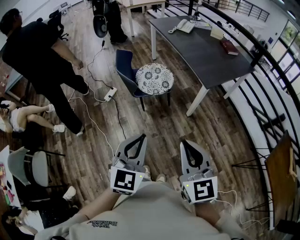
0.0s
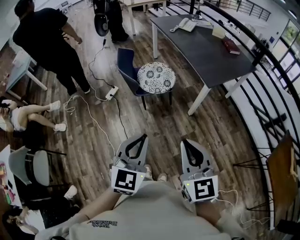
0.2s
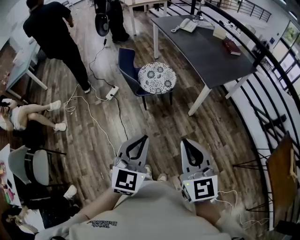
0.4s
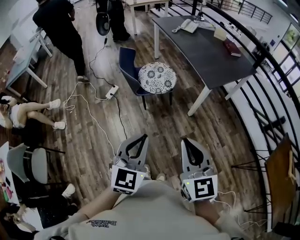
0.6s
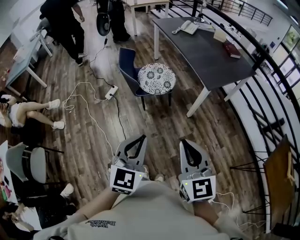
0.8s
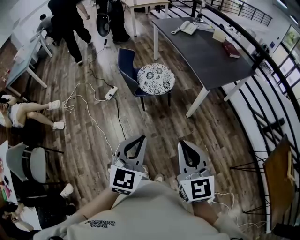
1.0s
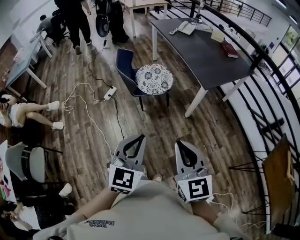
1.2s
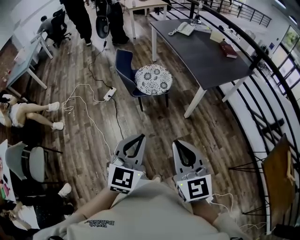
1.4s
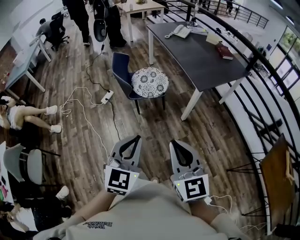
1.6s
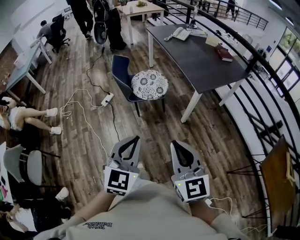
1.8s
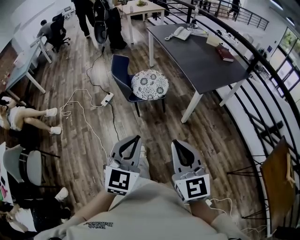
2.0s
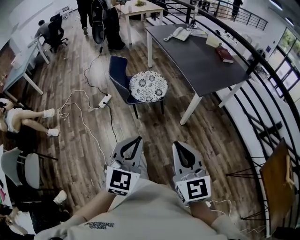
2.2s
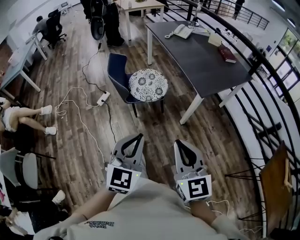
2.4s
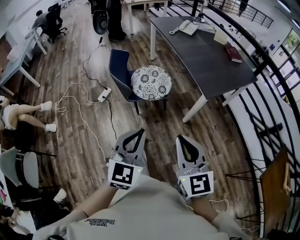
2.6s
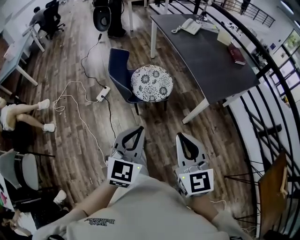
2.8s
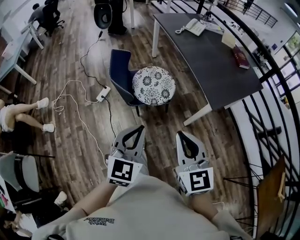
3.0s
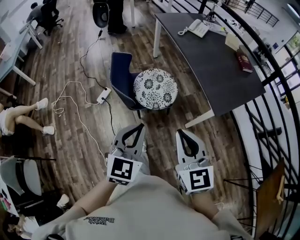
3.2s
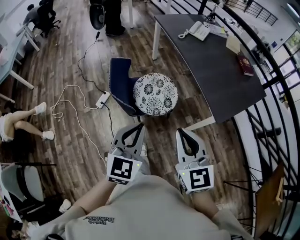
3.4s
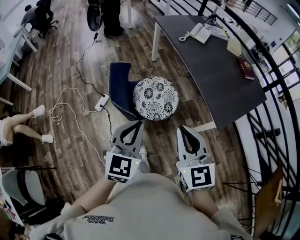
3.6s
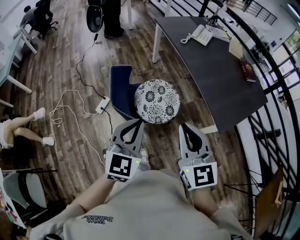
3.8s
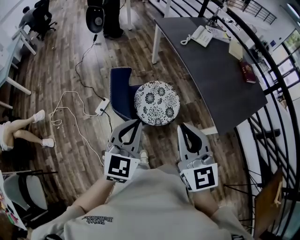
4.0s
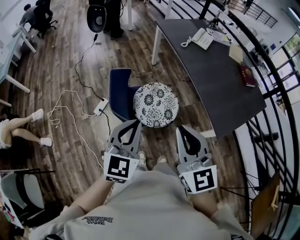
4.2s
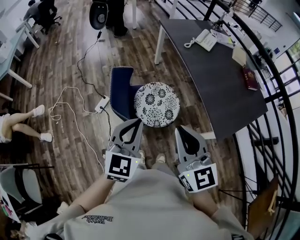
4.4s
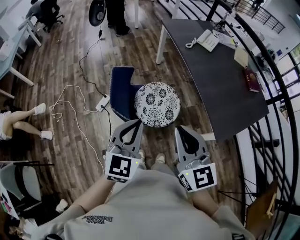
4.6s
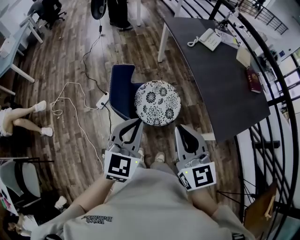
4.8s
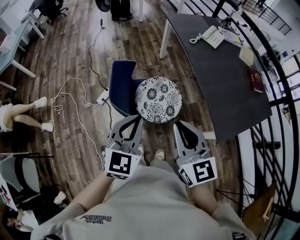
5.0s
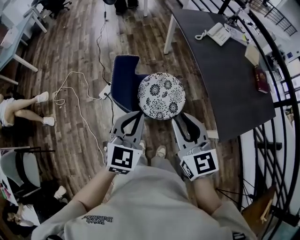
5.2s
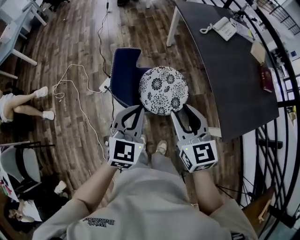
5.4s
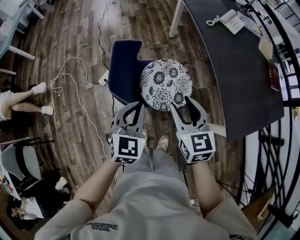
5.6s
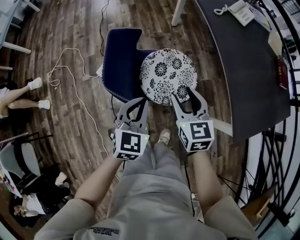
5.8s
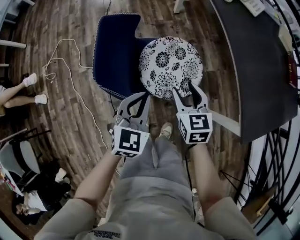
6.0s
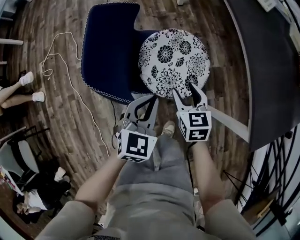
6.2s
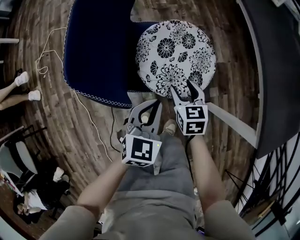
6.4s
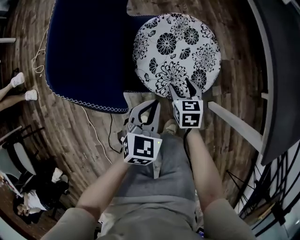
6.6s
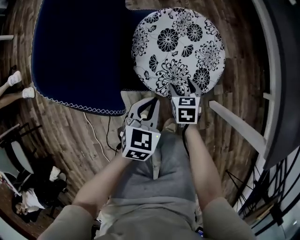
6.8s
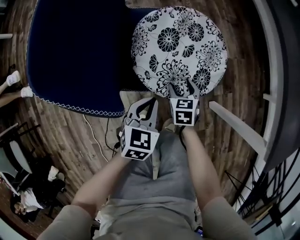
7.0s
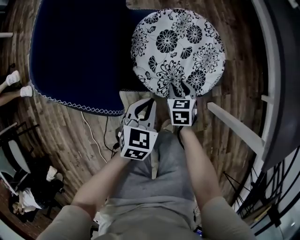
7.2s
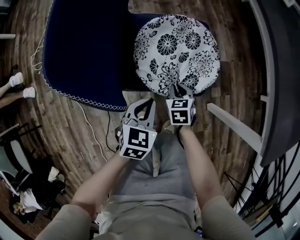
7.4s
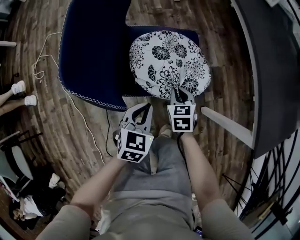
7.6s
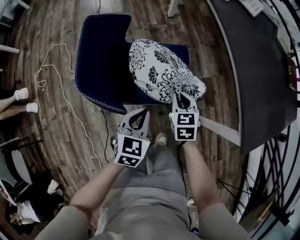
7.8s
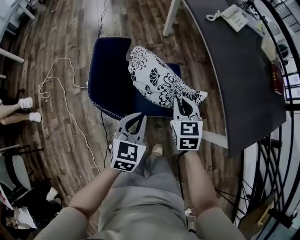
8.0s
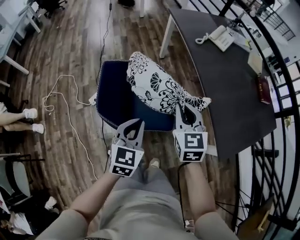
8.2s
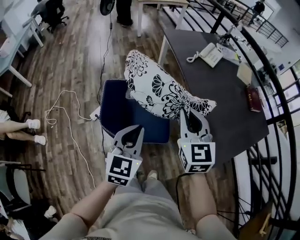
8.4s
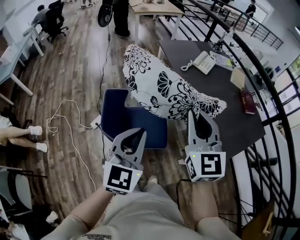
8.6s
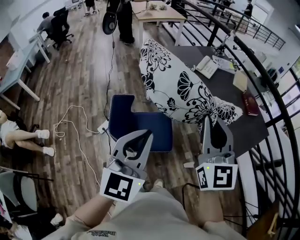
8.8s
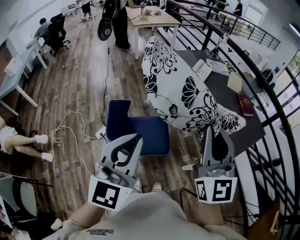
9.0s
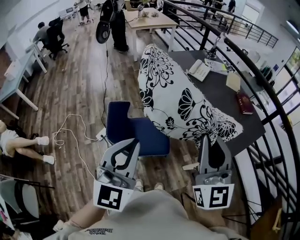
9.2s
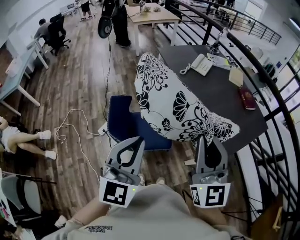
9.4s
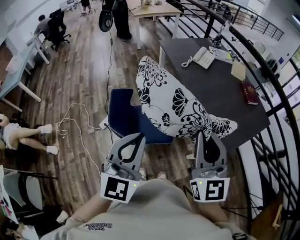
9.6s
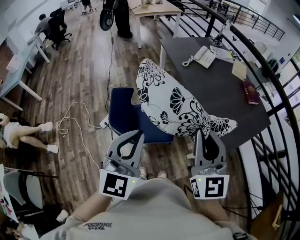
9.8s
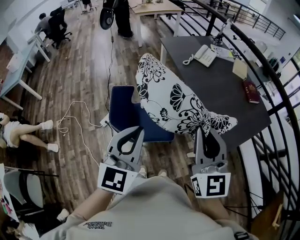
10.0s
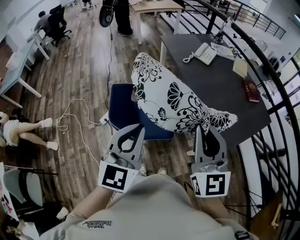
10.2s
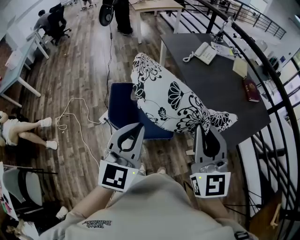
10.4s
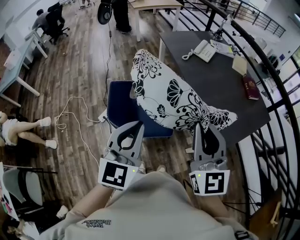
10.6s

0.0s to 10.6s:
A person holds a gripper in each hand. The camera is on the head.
0.0s to 1.6s: The grippers stay close to where they were, moving slightly.
1.6s to 3.0s: The grippers both shift forward by roughly 25 cm.
3.0s to 4.6s: The grippers both shift forward by some 25 cm.
4.6s to 6.0s: The left gripper heads downward, covering about 30 cm. Meanwhile the right gripper is displaced downward and forward by about 40 cm, changes its angle by roughly 30 degrees, and opens its fingers.
6.0s to 7.6s: Both grippers travel together downward, some 25 cm. The right gripper closes up.
7.6s to 9.0s: The two grippers go some 70 cm upward. The right gripper tilts its fingers roughly 60 degrees upward; the left gripper points its fingers roughly 40 degrees further upward.
9.0s to 10.6s: The two grippers go approximately 5 cm downward.

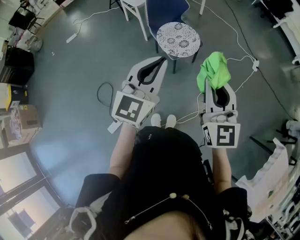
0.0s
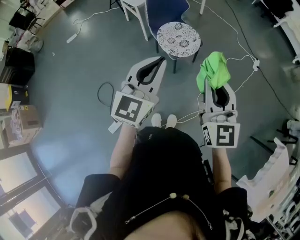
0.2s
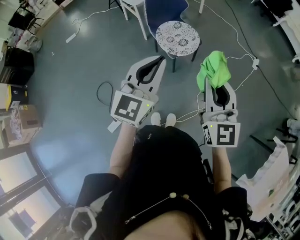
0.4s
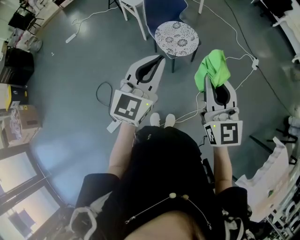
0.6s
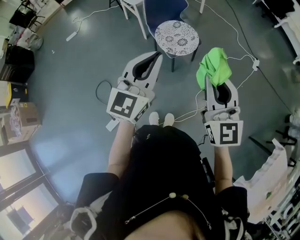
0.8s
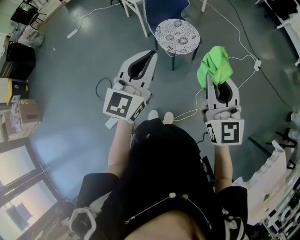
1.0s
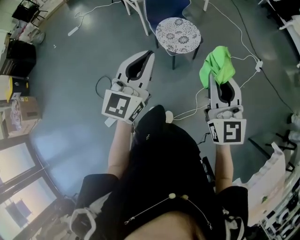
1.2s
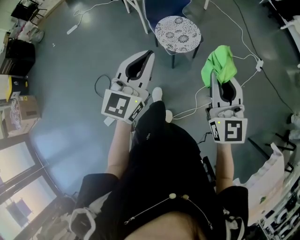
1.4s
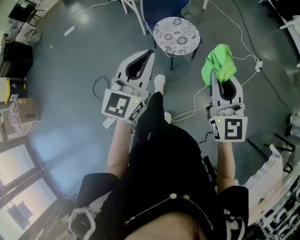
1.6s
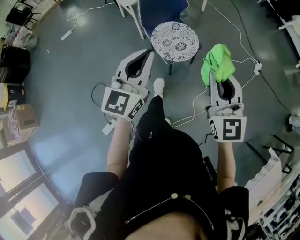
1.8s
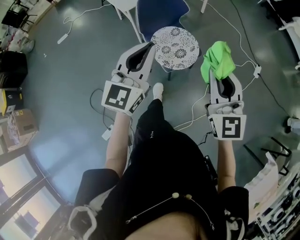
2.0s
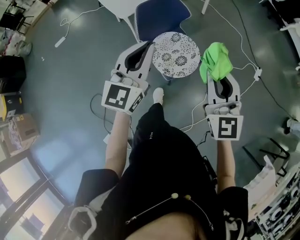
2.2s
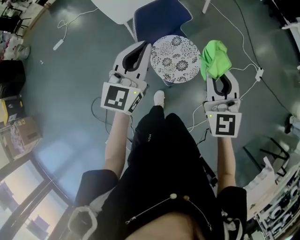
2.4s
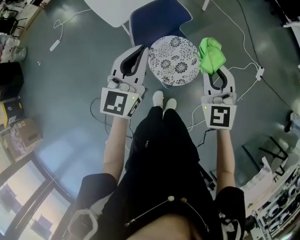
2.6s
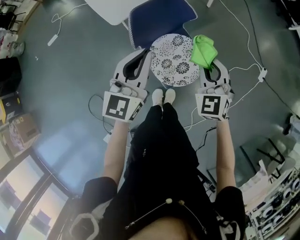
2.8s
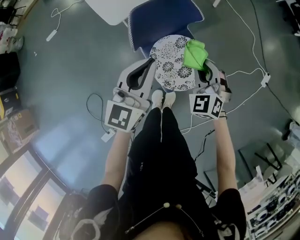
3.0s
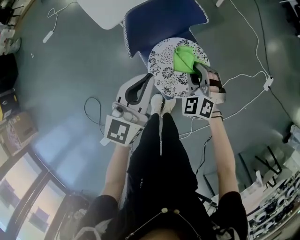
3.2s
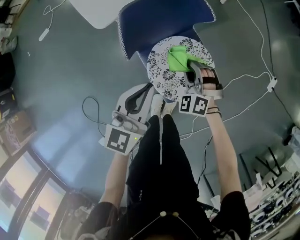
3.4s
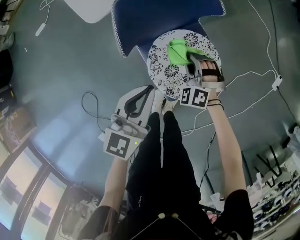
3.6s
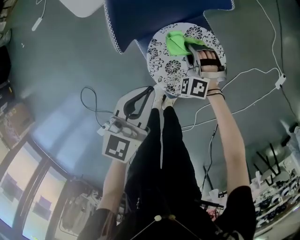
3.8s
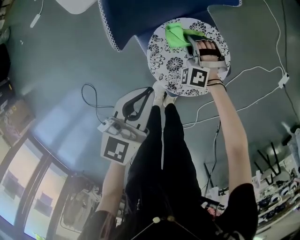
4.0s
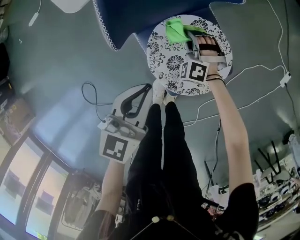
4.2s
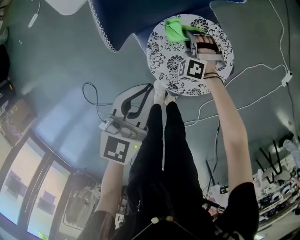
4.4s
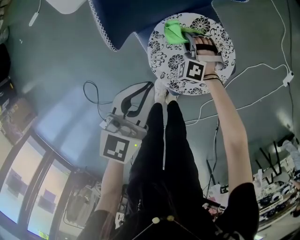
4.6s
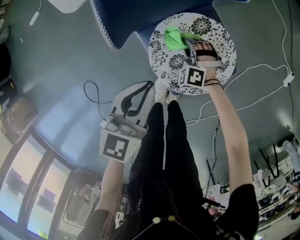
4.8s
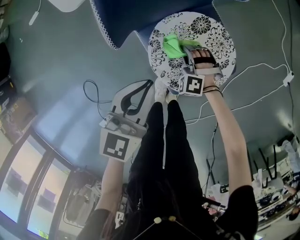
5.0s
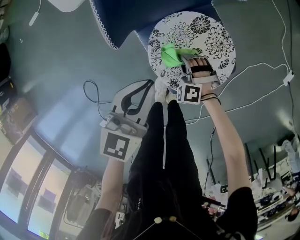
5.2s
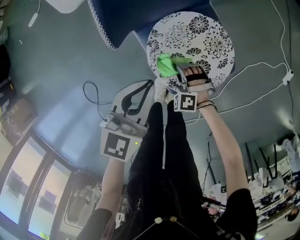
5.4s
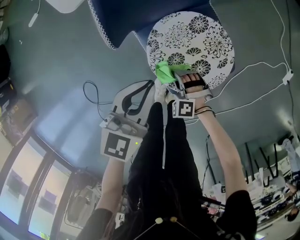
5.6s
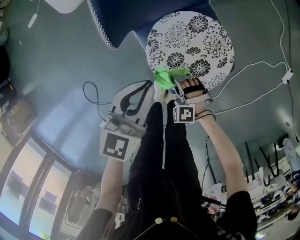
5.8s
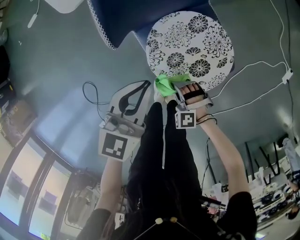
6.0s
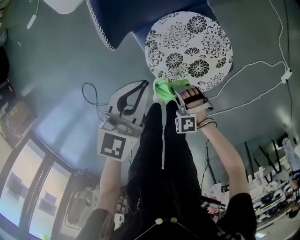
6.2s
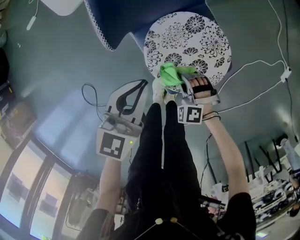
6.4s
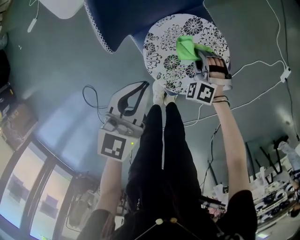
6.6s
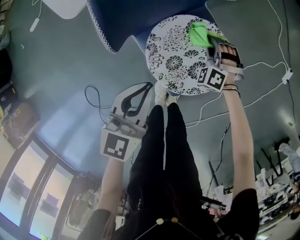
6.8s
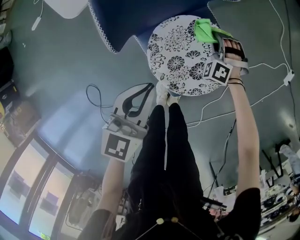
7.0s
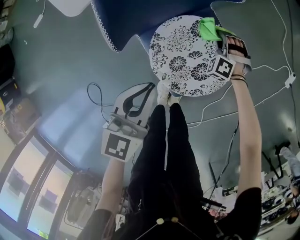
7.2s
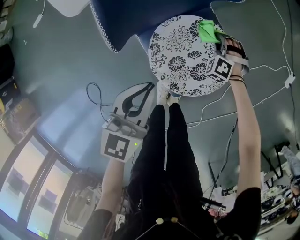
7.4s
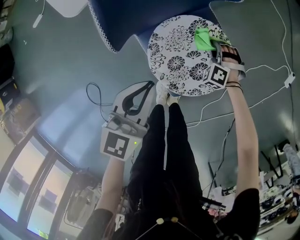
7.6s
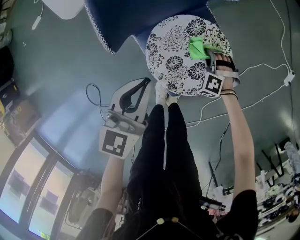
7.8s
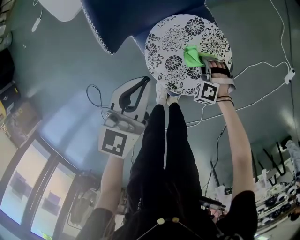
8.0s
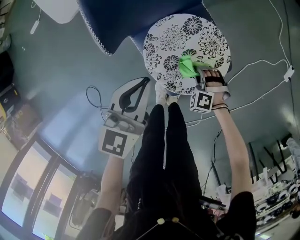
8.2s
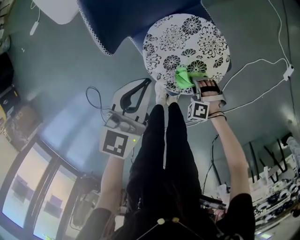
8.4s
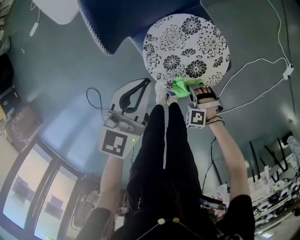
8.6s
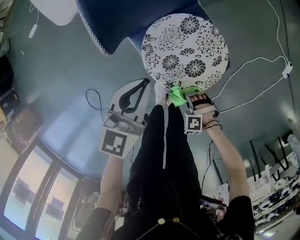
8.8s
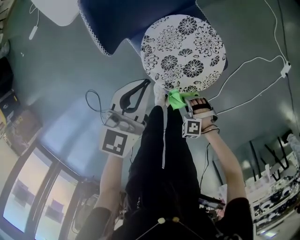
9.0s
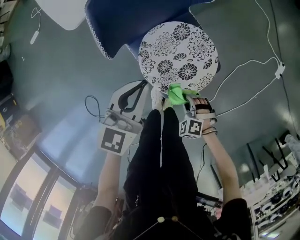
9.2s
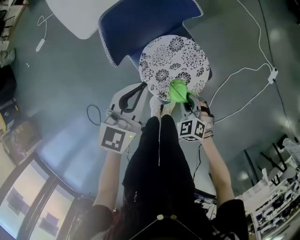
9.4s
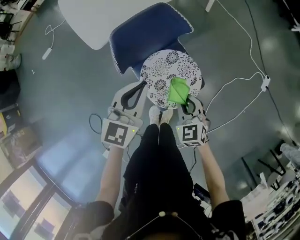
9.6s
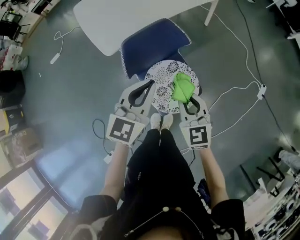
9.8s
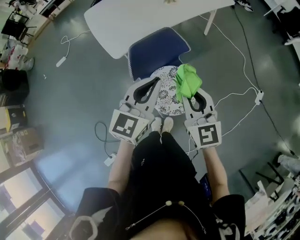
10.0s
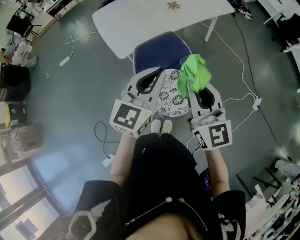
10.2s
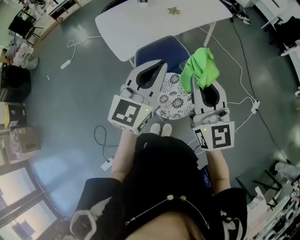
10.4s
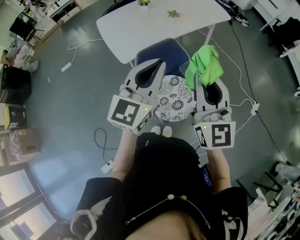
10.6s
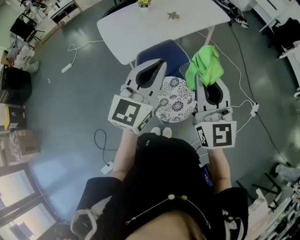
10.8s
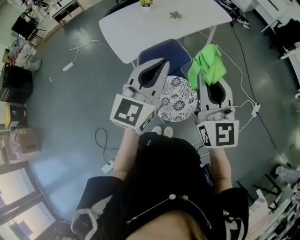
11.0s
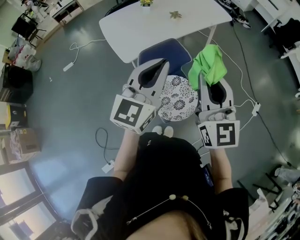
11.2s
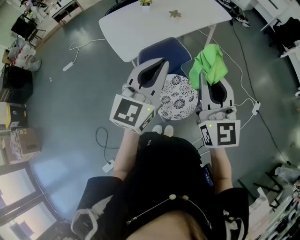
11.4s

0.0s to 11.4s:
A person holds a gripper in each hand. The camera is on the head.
0.0s to 1.4s: The right gripper goes approximately 5 cm to the right.
1.4s to 2.8s: The two grippers travel together, forward, approximately 50 cm. The right gripper turns by approximately 40 degrees.
2.8s to 4.2s: The left gripper heads downward, covering about 30 cm, and rotates some 20 degrees; the right gripper heads downward, covering roughly 50 cm, and changes its angle by roughly 40 degrees.
4.2s to 5.6s: The right gripper travels backward by approximately 20 cm.
5.6s to 7.2s: The right gripper goes about 25 cm forward and to the right, and swivels about 20 degrees.
7.2s to 8.6s: The right gripper moves backward, some 30 cm, and changes its angle by some 30 degrees.
8.6s to 10.0s: The left gripper heads upward, covering roughly 35 cm, while the right gripper is displaced upward by about 60 cm, and angles its fingers upward, by roughly 60 degrees.
10.0s to 11.4s: The two grippers go roughly 15 cm upward.

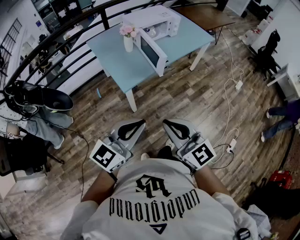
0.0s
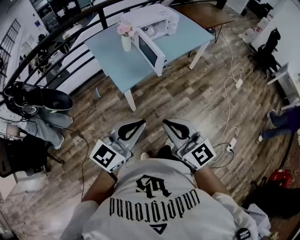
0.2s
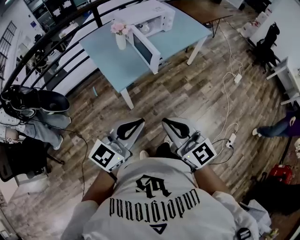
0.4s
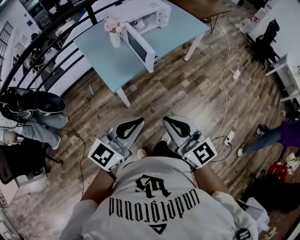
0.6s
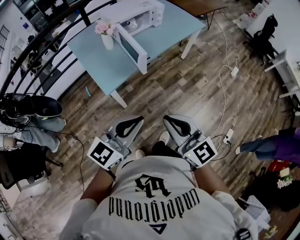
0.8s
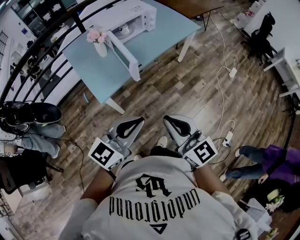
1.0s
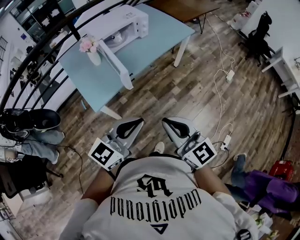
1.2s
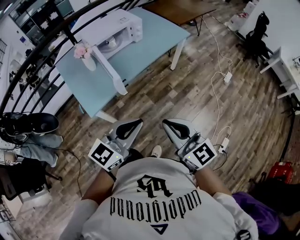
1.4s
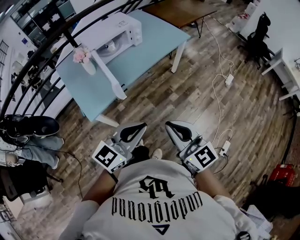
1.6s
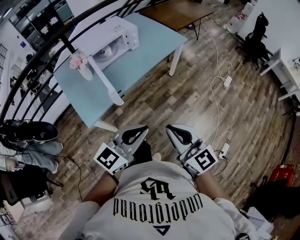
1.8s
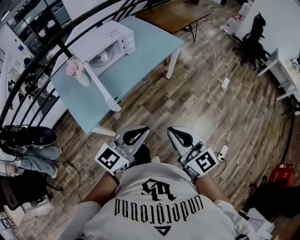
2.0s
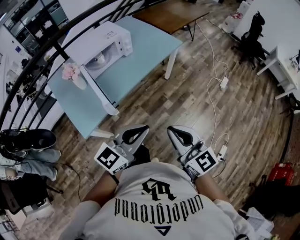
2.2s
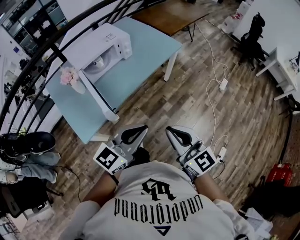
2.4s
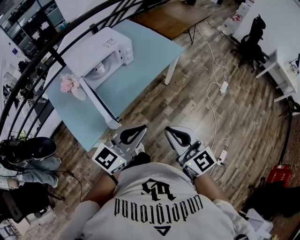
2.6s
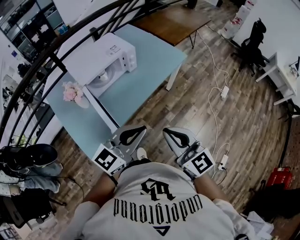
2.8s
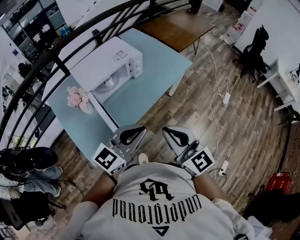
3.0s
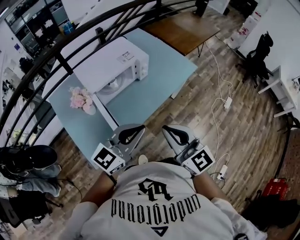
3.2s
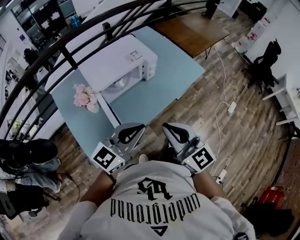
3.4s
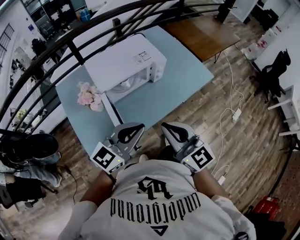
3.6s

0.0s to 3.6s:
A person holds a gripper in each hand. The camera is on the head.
0.0s to 1.8s: The two grippers go some 35 cm to the right and forward.
1.8s to 3.6s: Both grippers travel together forward and to the left, some 35 cm.
